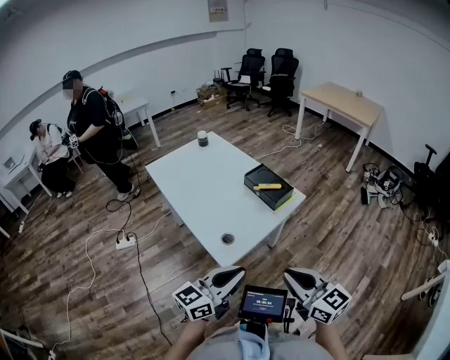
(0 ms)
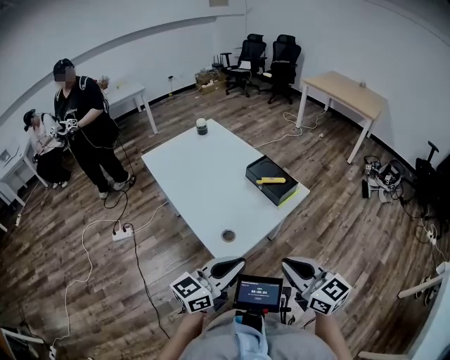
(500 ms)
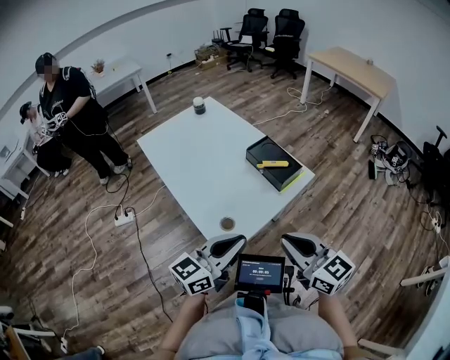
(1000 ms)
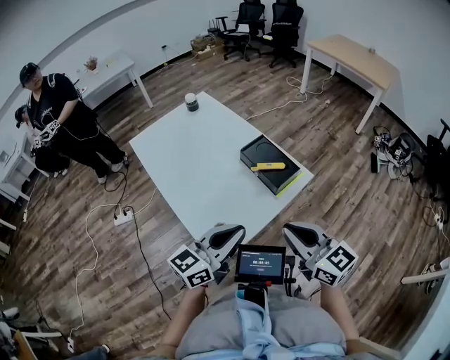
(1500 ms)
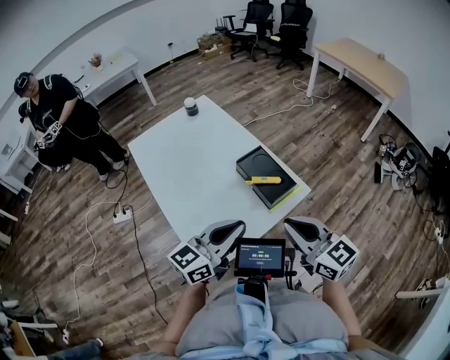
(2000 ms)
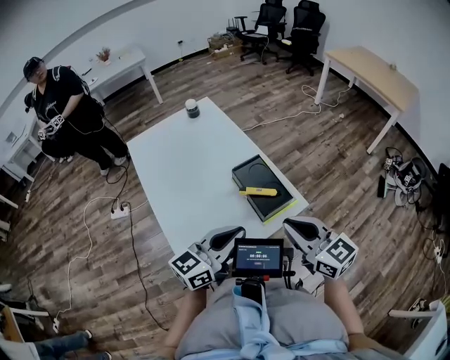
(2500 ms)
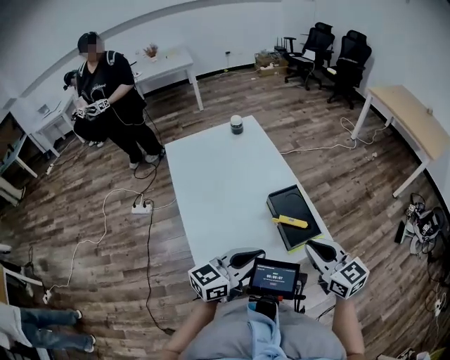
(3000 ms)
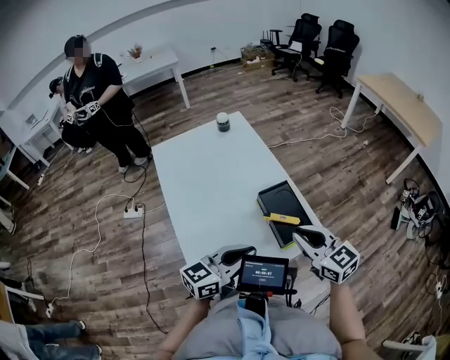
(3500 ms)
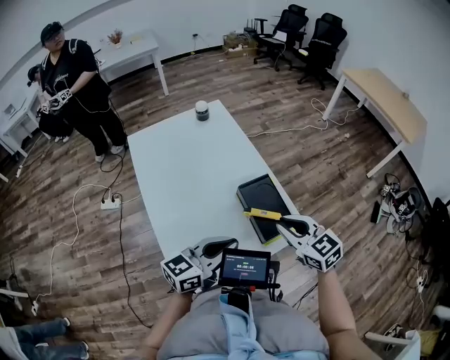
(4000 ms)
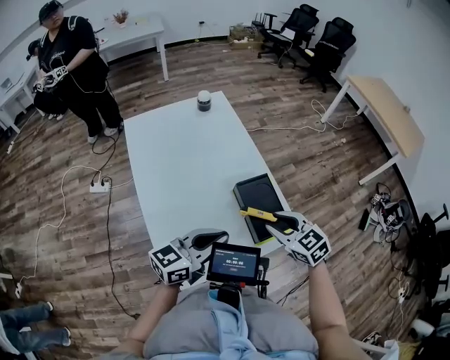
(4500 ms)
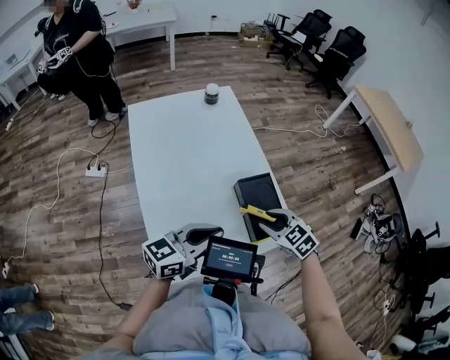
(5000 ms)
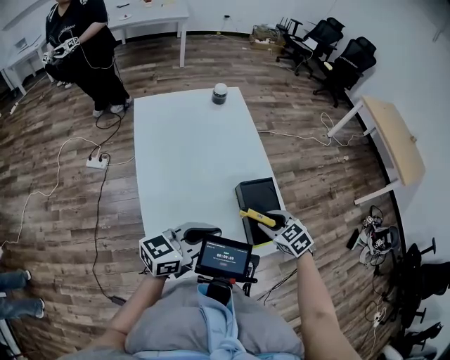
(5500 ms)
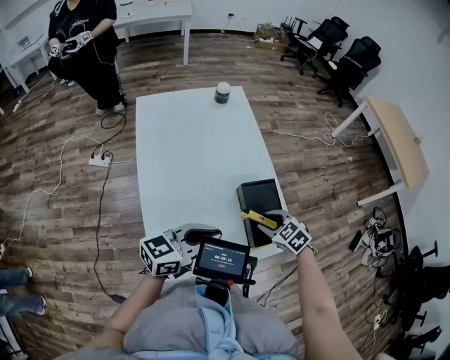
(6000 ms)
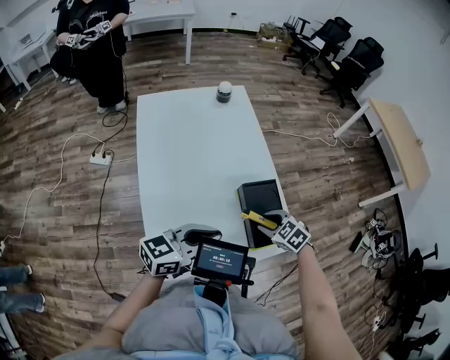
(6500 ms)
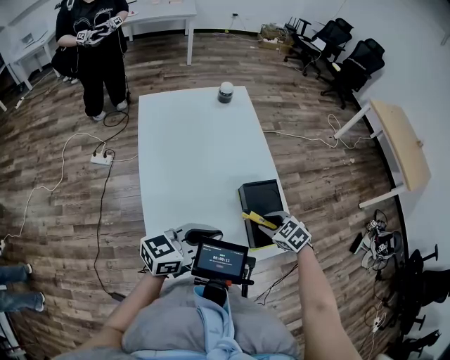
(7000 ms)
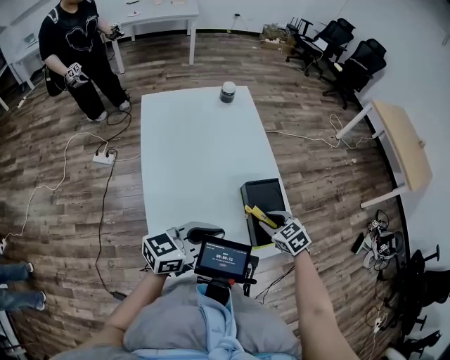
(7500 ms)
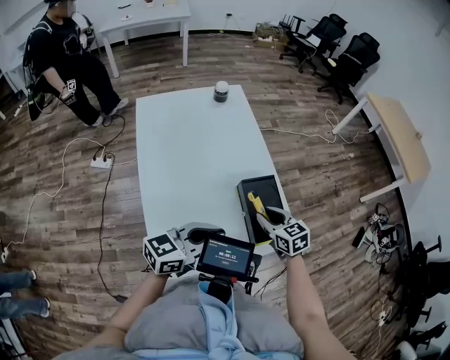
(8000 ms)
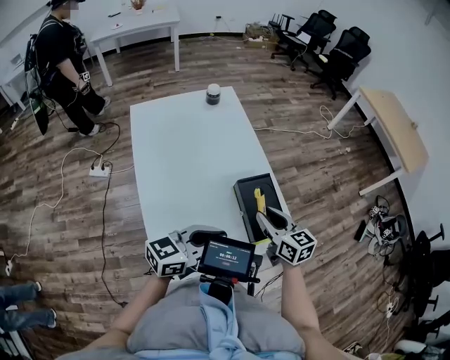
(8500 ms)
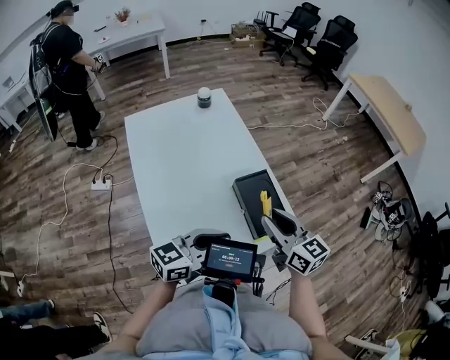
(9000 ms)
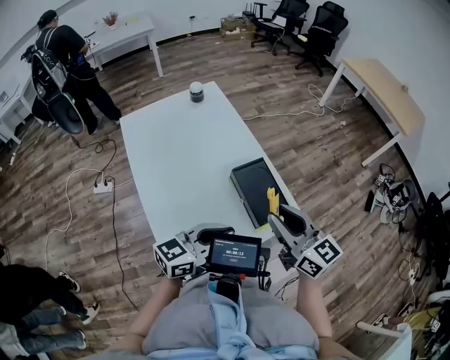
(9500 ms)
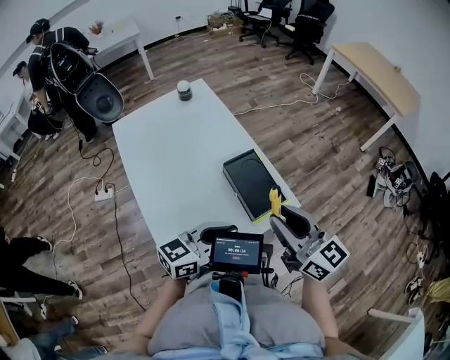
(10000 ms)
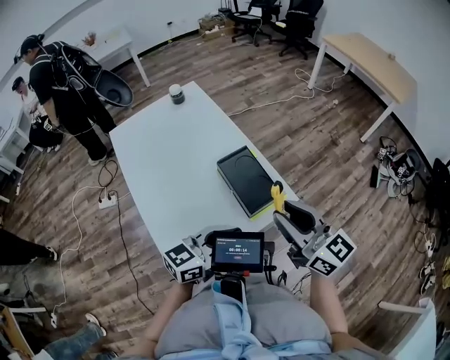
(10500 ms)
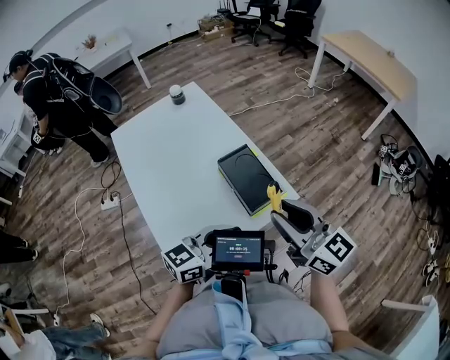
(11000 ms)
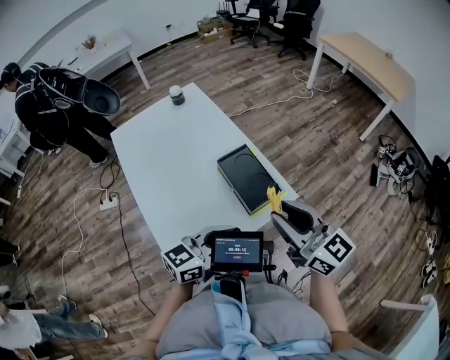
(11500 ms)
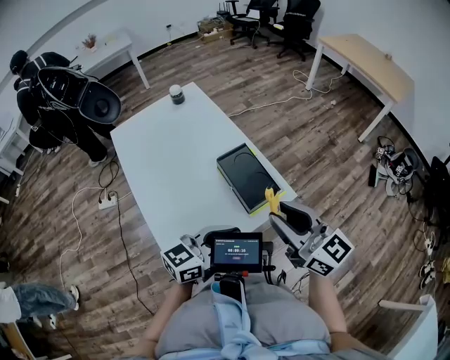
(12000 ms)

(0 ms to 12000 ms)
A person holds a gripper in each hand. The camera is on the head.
0 ms - 2000 ms: The two grippers go approximately 25 cm forward.
2000 ms - 4000 ms: The left gripper heads forward and downward, covering about 10 cm, while the right gripper heads forward and downward, covering approximately 15 cm, and turns by about 20 degrees.
4000 ms - 6000 ms: The right gripper goes about 15 cm downward, swivels approximately 40 degrees, and opens its fingers.
6000 ms - 8000 ms: The right gripper swivels roughly 30 degrees.
8000 ms - 10000 ms: The right gripper heads upward and backward, covering some 25 cm, and tilts its fingers about 40 degrees upward; the left gripper heads to the right, covering approximately 5 cm.
10000 ms - 12000 ms: The grippers make only small movements.

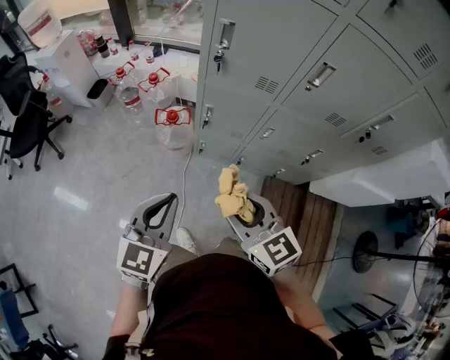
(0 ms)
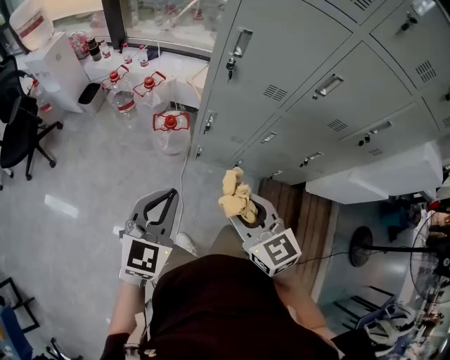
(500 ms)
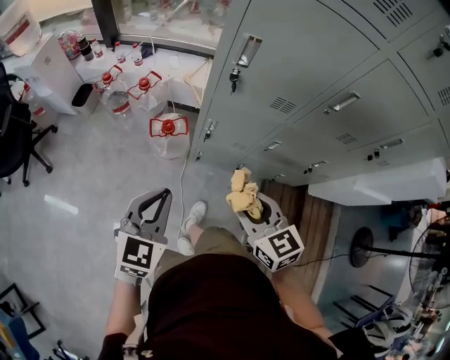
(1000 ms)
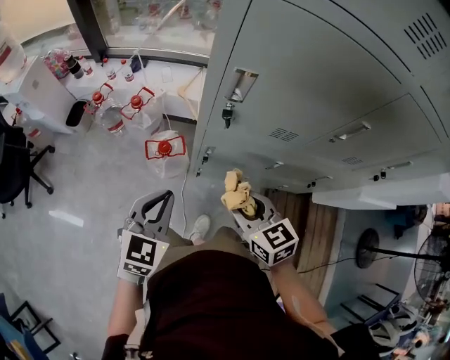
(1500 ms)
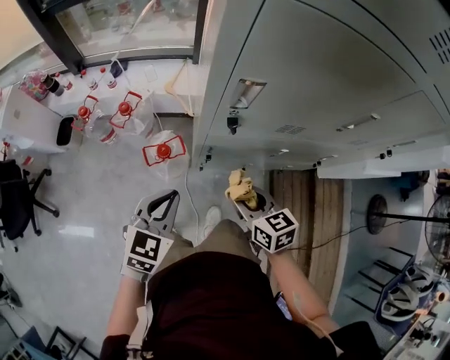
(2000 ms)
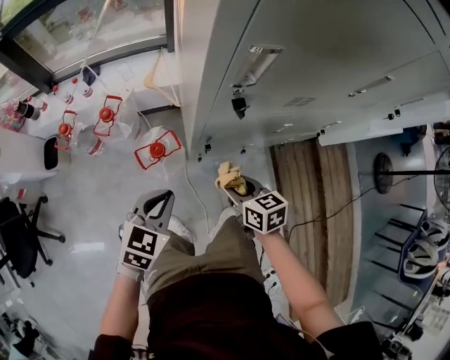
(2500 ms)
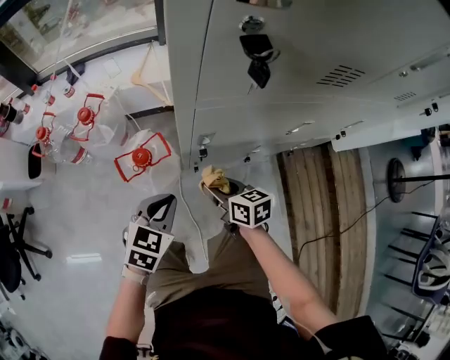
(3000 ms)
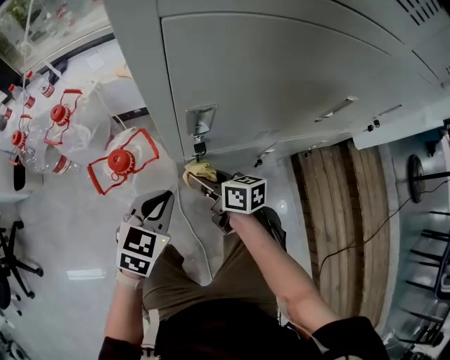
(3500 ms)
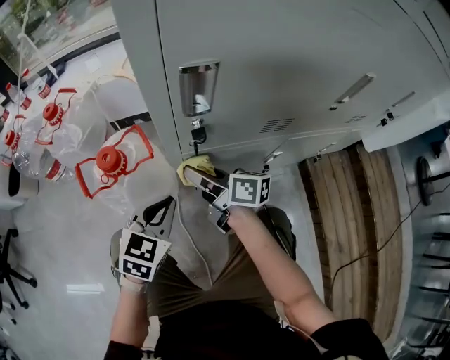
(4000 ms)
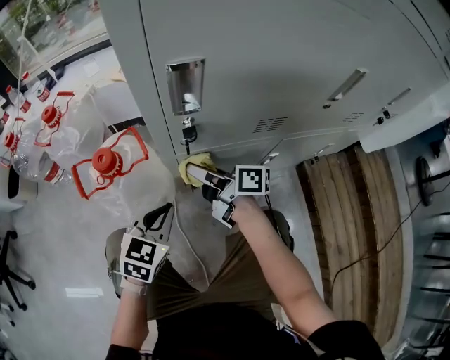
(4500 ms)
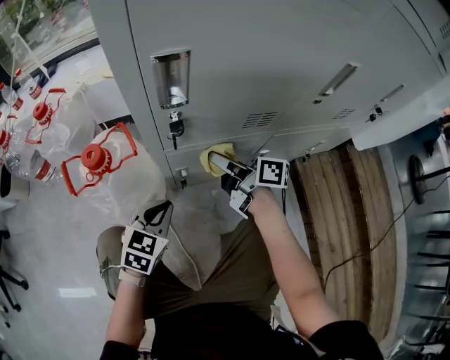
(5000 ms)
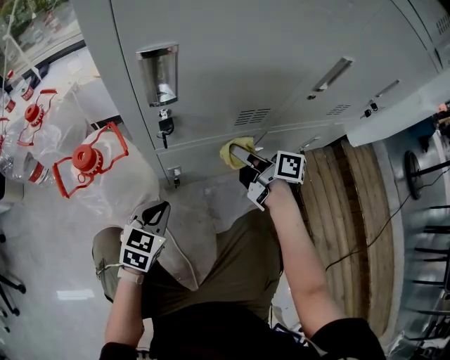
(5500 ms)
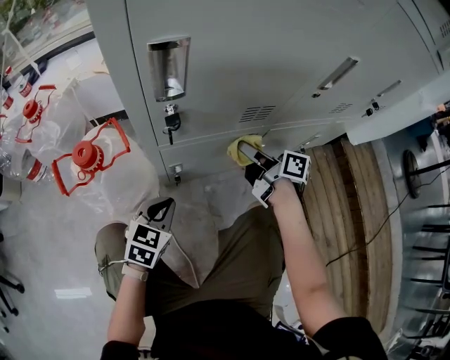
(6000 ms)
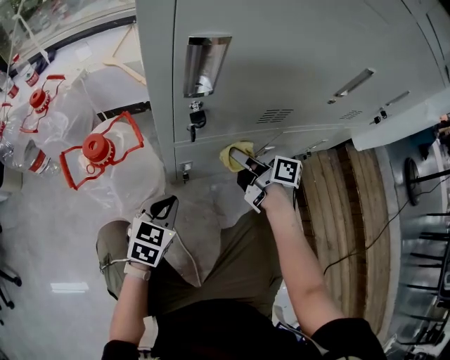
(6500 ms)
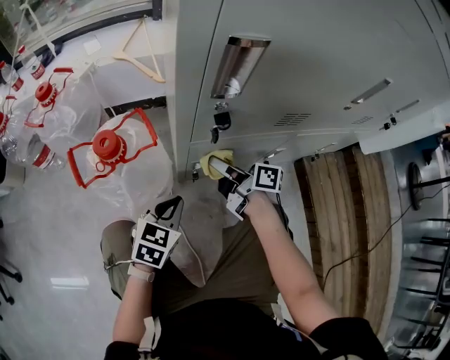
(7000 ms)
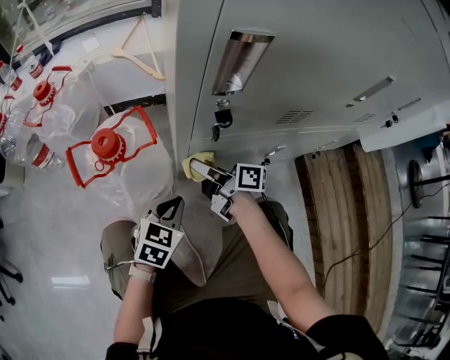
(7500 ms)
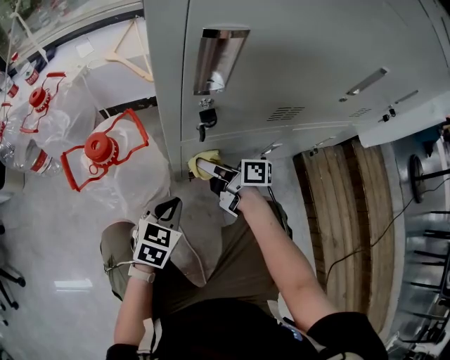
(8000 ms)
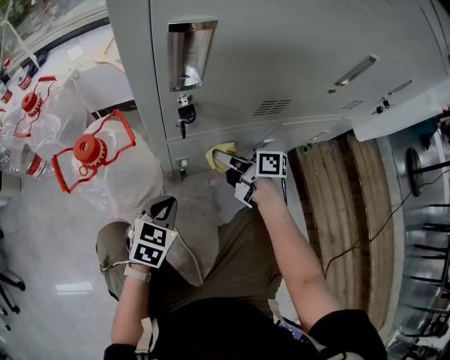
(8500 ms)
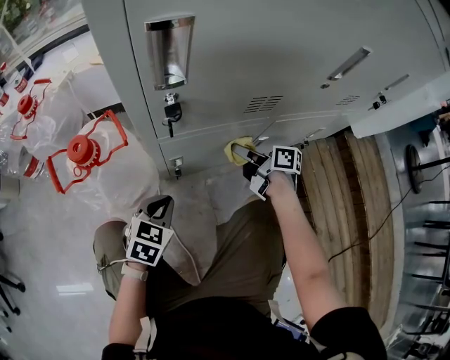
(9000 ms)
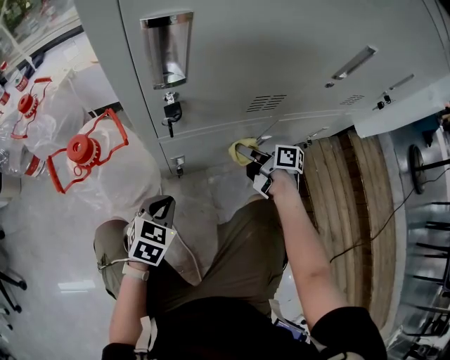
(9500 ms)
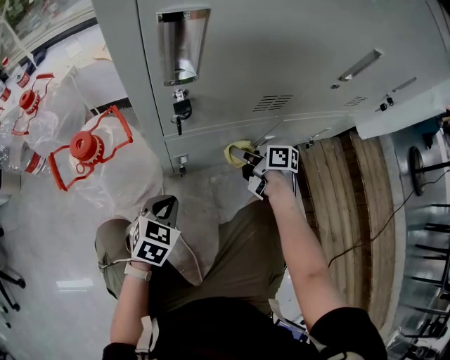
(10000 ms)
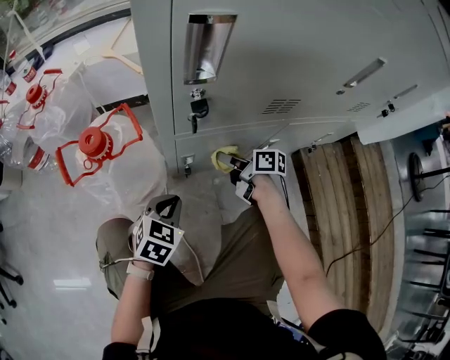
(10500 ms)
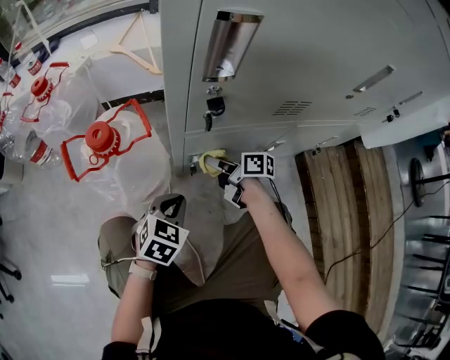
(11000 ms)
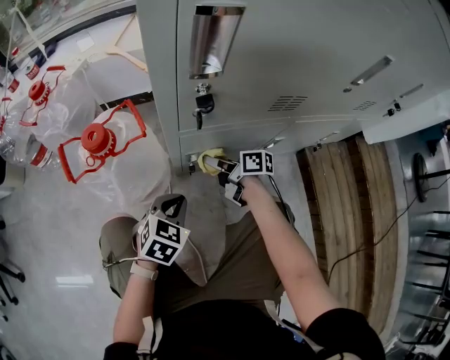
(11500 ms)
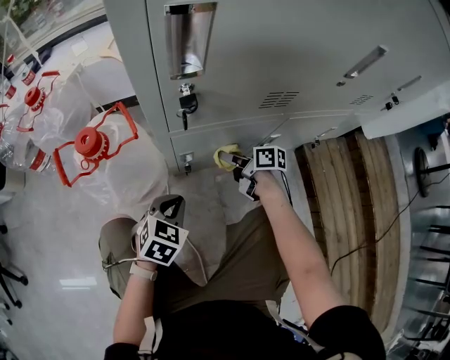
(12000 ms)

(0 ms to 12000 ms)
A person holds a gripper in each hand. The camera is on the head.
0 ms - 2000 ms: The left gripper is displaced forward by about 30 cm, and rotates approximately 30 degrees; the right gripper moves forward and downward, about 30 cm, and turns by about 30 degrees.
2000 ms - 4000 ms: The grippers both shift downward by about 50 cm. The right gripper rotates about 40 degrees.
4000 ms - 6000 ms: The right gripper shifts approximately 20 cm to the right, while the left gripper shifts about 10 cm downward.
6000 ms - 8000 ms: The right gripper heads to the left, covering roughly 20 cm.
8000 ms - 10000 ms: The right gripper moves to the right, roughly 15 cm.

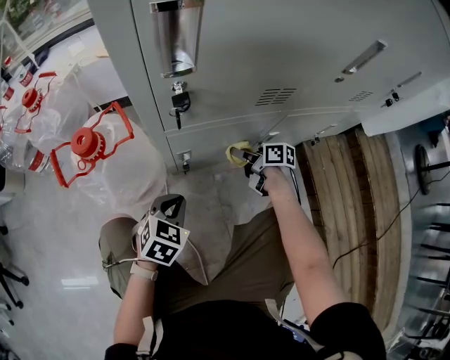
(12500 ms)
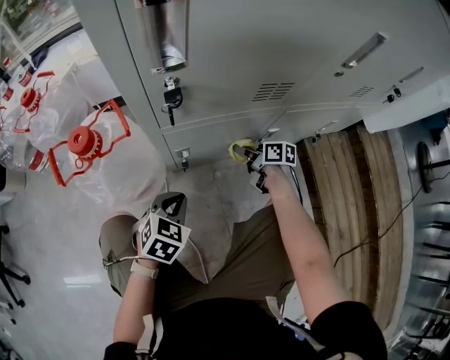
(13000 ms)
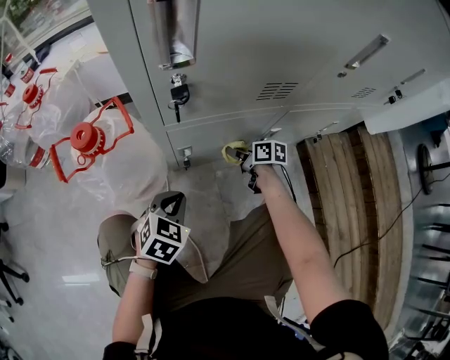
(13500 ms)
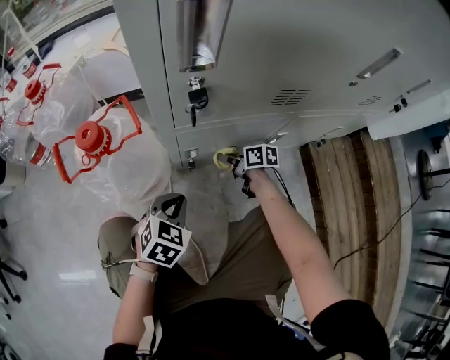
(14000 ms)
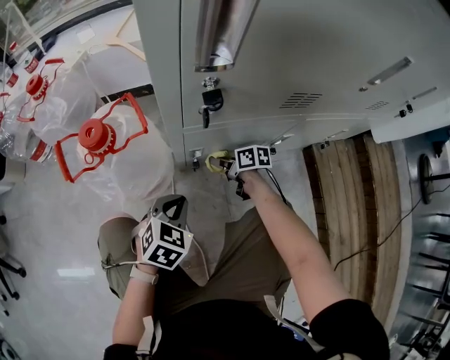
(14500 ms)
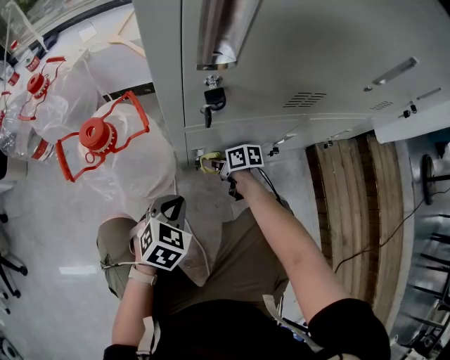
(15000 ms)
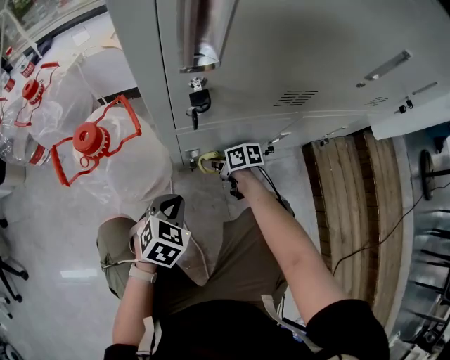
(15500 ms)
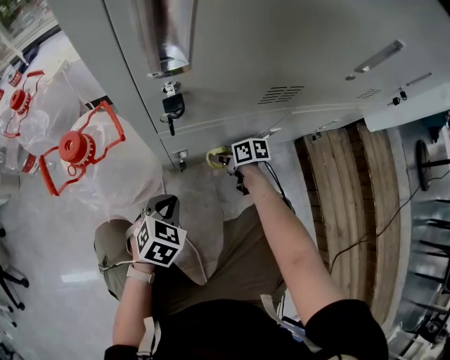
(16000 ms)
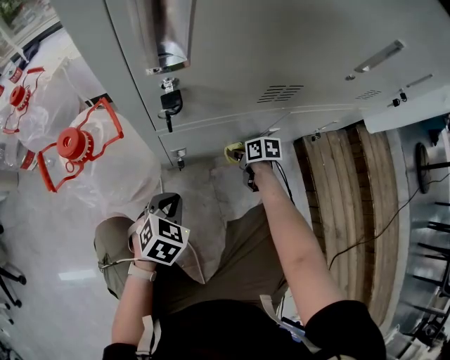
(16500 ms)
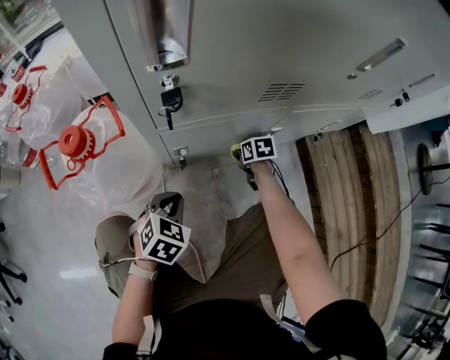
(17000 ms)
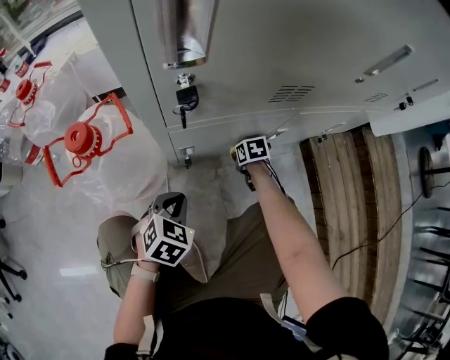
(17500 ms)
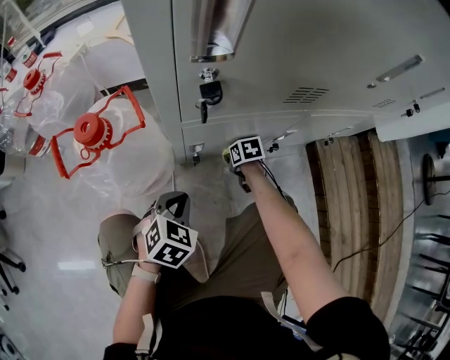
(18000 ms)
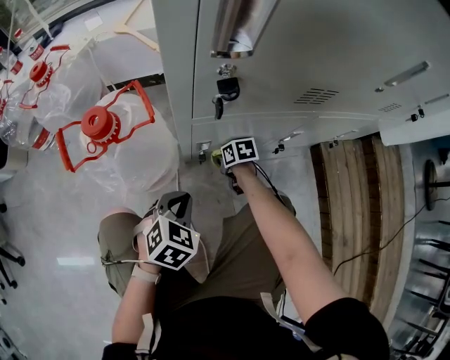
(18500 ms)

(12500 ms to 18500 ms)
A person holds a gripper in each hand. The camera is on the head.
12500 ms - 14500 ms: The right gripper moves to the left and downward, roughly 10 cm.
14500 ms - 16500 ms: The right gripper travels to the right by some 15 cm.
16500 ms - 18500 ms: The right gripper heads to the left, covering about 15 cm.
